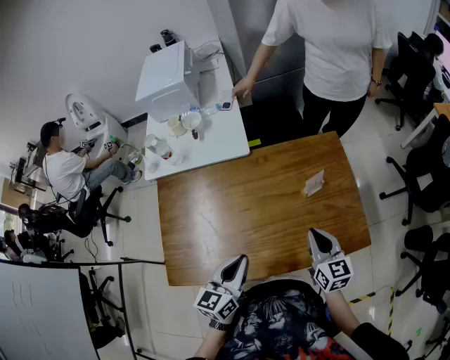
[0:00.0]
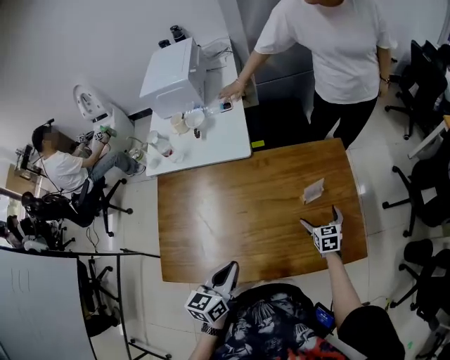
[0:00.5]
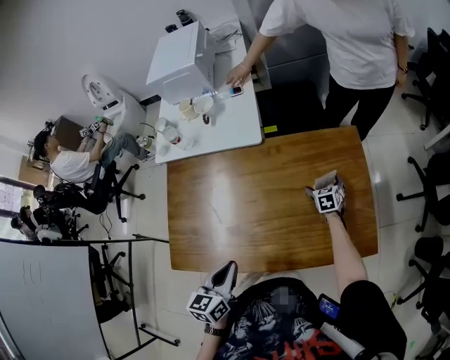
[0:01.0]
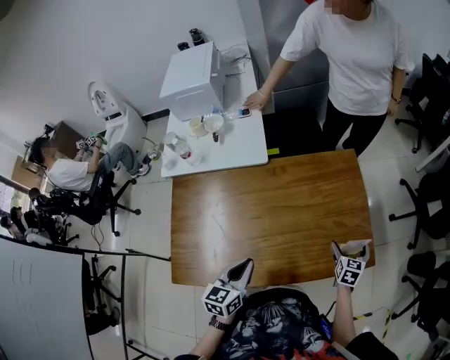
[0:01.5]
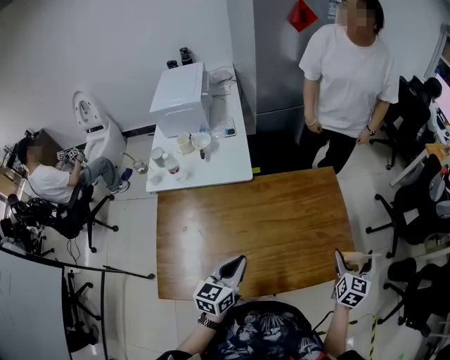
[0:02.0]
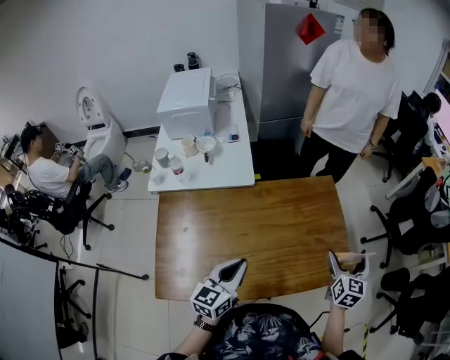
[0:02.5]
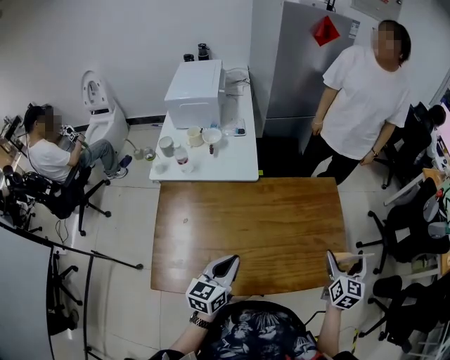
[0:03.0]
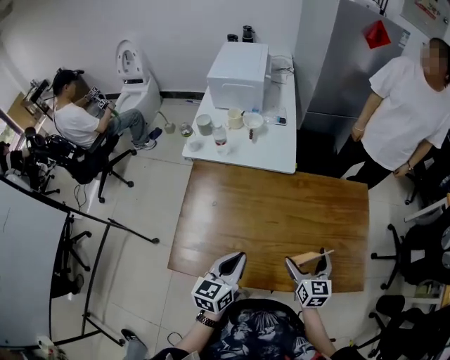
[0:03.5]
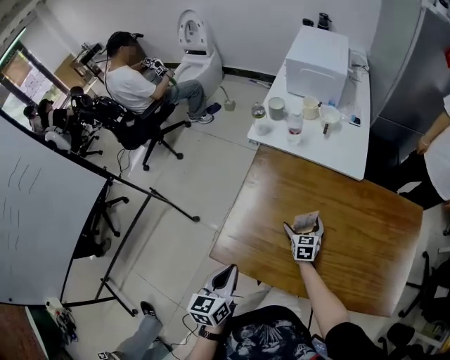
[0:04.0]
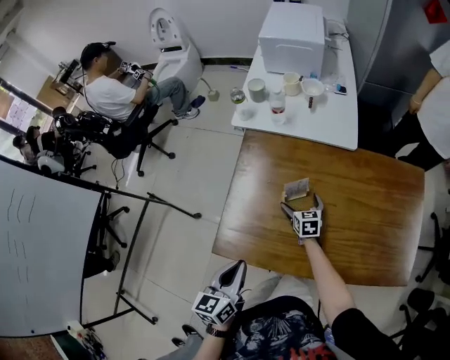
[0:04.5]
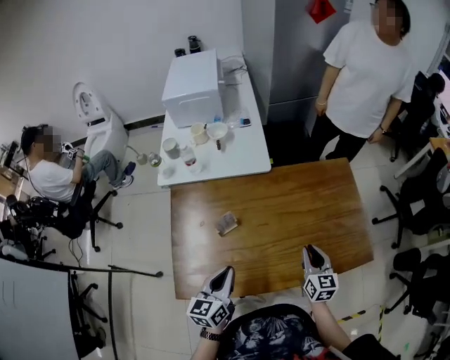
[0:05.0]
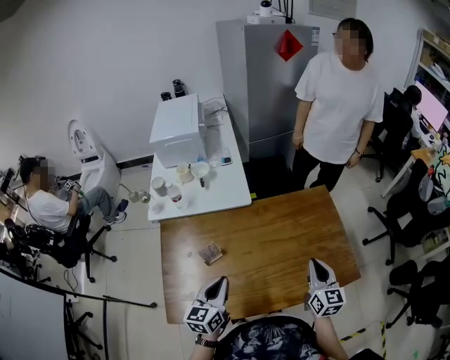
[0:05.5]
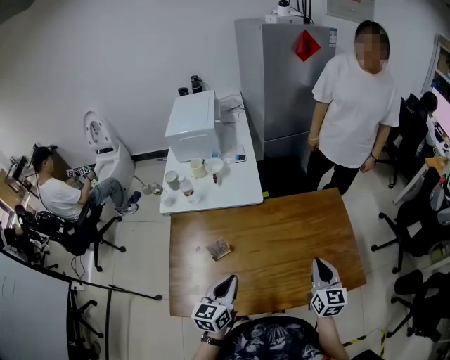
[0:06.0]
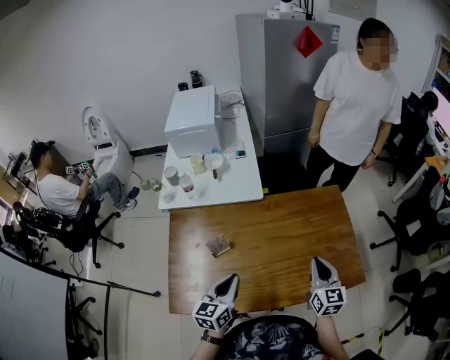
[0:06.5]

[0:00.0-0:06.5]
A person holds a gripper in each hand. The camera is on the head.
0:00.0 to 0:02.0: The right gripper goes about 15 cm to the right, travels downward and back again, roughly 25 cm each way, turns by approximately 40 degrees, and opens its fingers.
0:02.0 to 0:04.5: The right gripper changes place by roughly 60 cm, and changes its angle by about 50 degrees. Meanwhile the left gripper changes place by some 30 cm, and changes its angle by approximately 30 degrees.
0:04.5 to 0:06.5: The right gripper changes place by some 50 cm, turns by some 40 degrees, and closes its fingers. Meanwhile the left gripper shifts by about 25 cm, and swivels roughly 20 degrees.

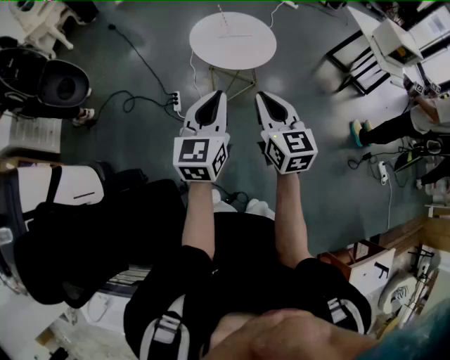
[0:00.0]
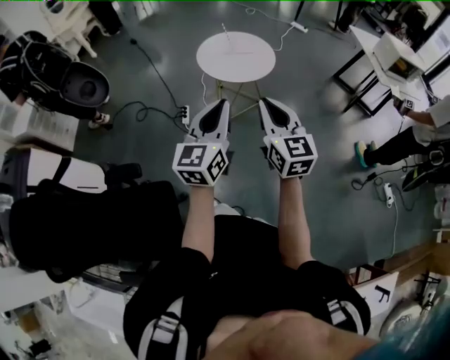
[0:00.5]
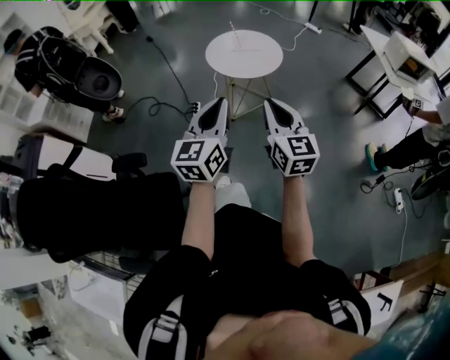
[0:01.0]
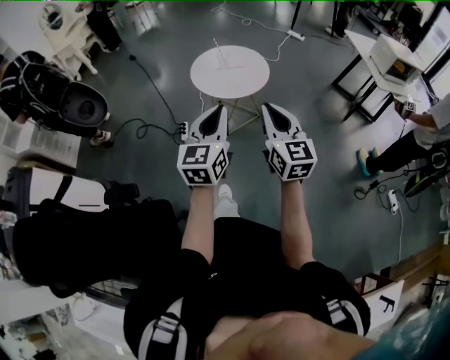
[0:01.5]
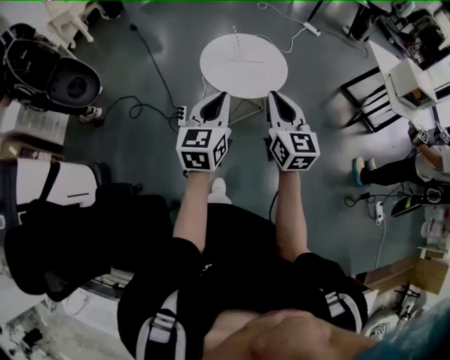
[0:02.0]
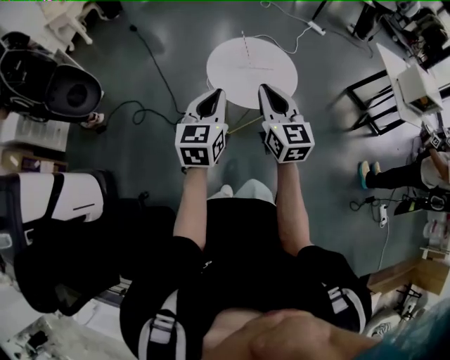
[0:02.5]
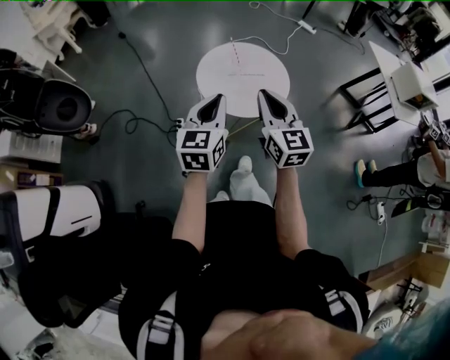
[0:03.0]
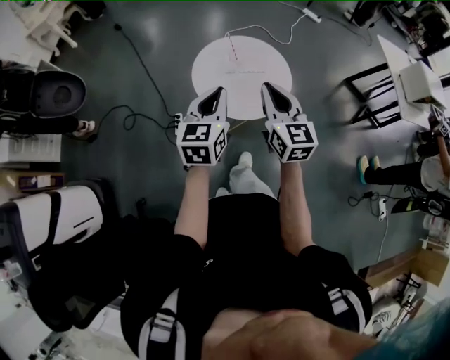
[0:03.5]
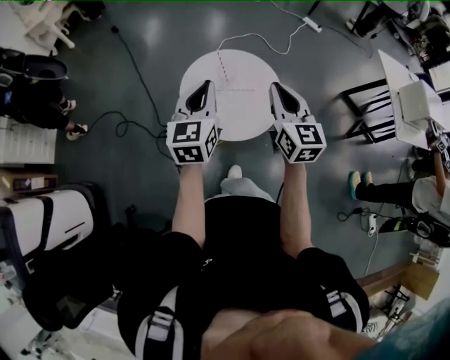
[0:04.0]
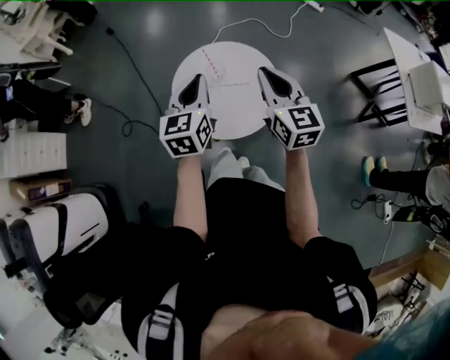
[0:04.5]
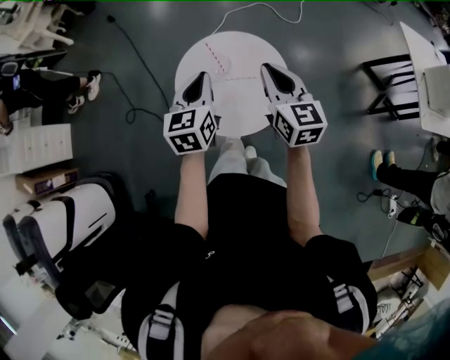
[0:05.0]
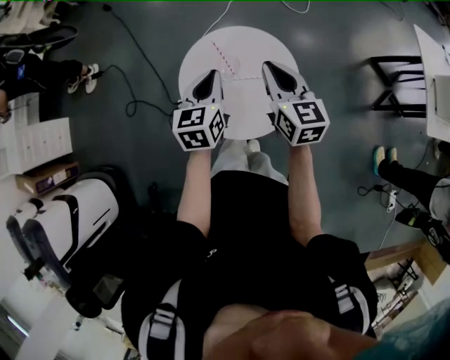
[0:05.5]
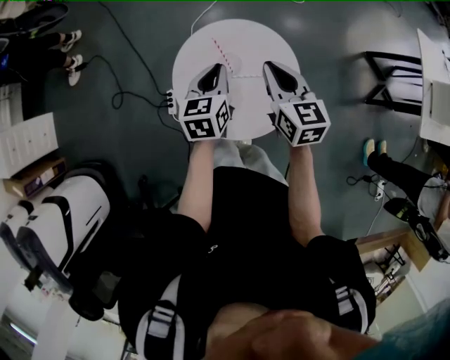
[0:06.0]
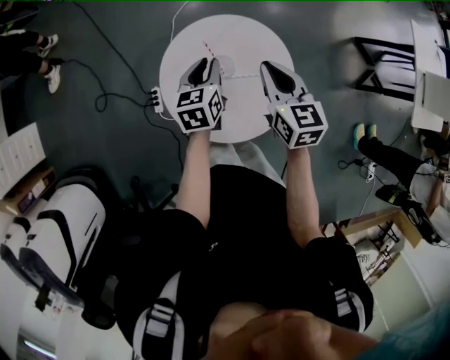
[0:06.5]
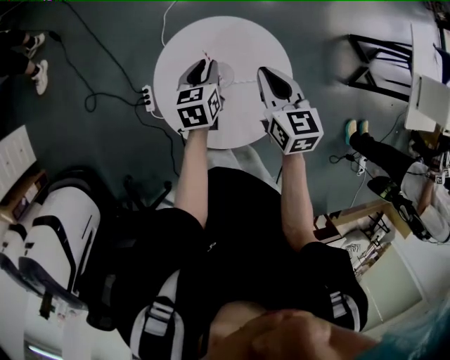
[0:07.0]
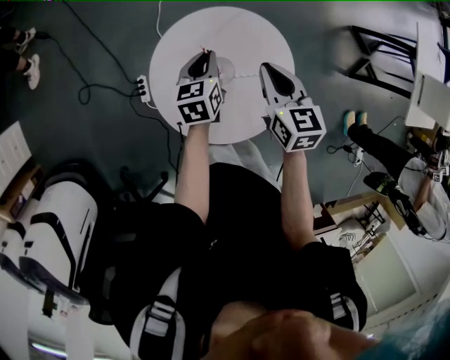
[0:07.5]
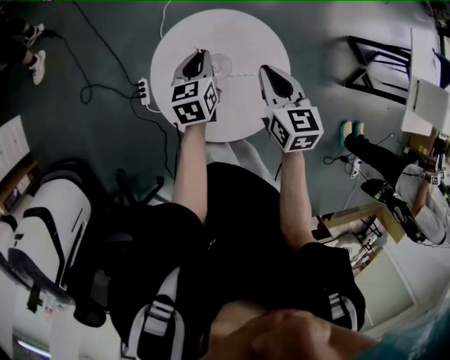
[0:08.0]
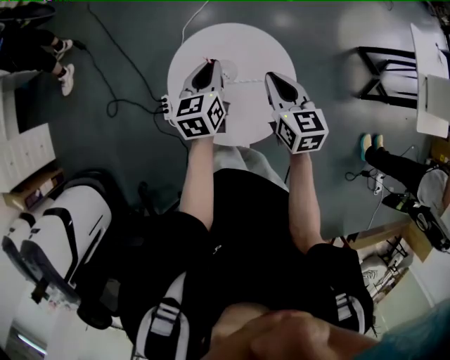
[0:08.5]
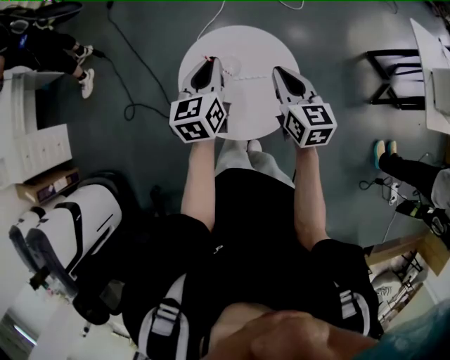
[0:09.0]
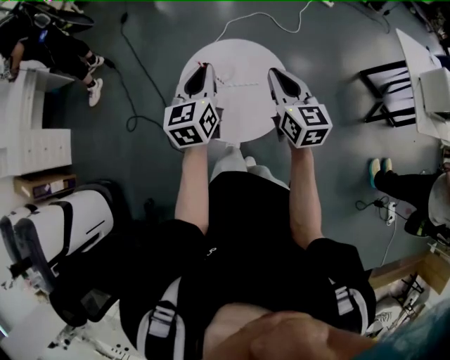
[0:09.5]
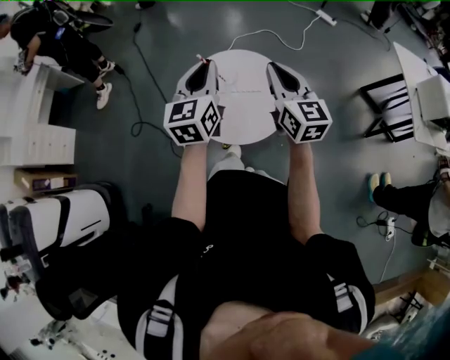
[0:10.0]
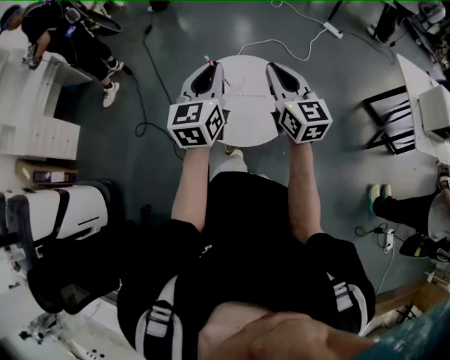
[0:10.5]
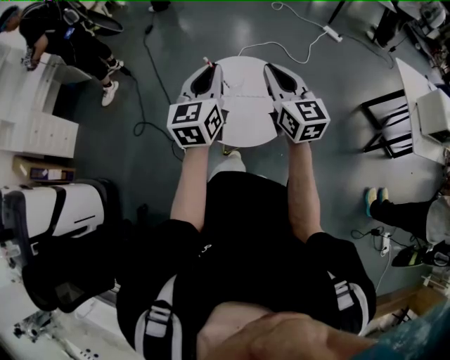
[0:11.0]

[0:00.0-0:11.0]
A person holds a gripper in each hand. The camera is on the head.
0:00.0 to 0:02.0: Both grippers travel together forward and to the right, roughly 15 cm.
0:02.0 to 0:03.5: The grippers both shift forward by about 25 cm.
0:03.5 to 0:05.5: The right gripper heads forward and to the right, covering approximately 30 cm. The left gripper goes approximately 25 cm forward.
0:05.5 to 0:07.5: Both grippers move downward and forward, approximately 20 cm. The left gripper changes its angle by about 20 degrees, while the right gripper swivels roughly 20 degrees.
0:07.5 to 0:09.0: The left gripper heads upward and backward, covering about 25 cm, and rotates approximately 20 degrees. Meanwhile the right gripper shifts approximately 20 cm backward and upward.
0:09.0 to 0:11.0: The right gripper goes about 15 cm upward and backward, and rotates some 20 degrees, while the left gripper shifts approximately 20 cm backward and upward.

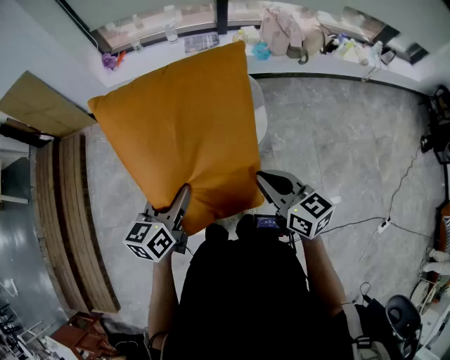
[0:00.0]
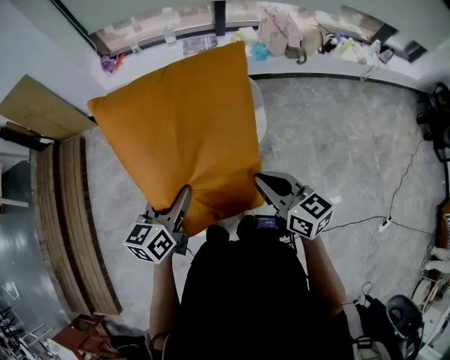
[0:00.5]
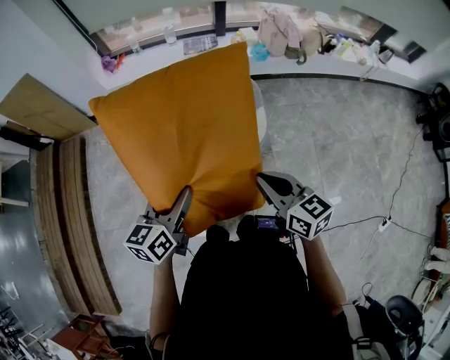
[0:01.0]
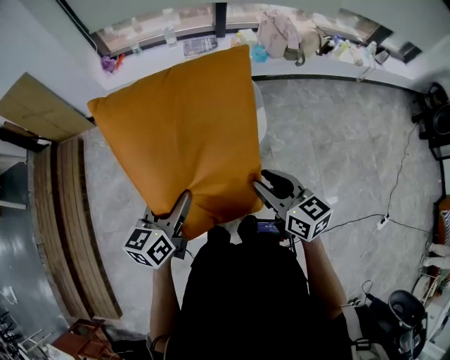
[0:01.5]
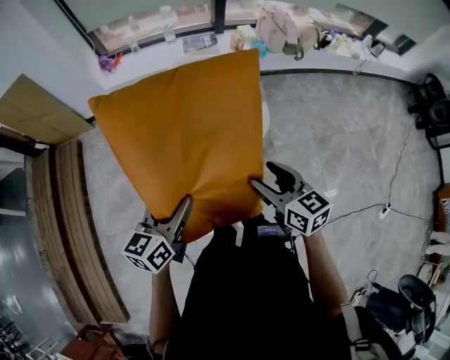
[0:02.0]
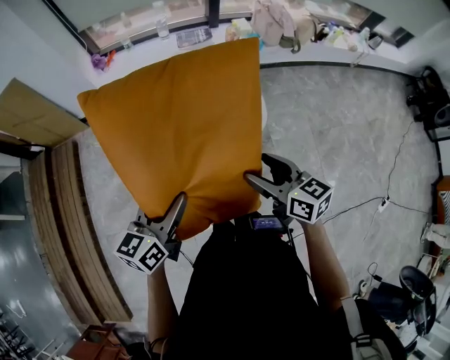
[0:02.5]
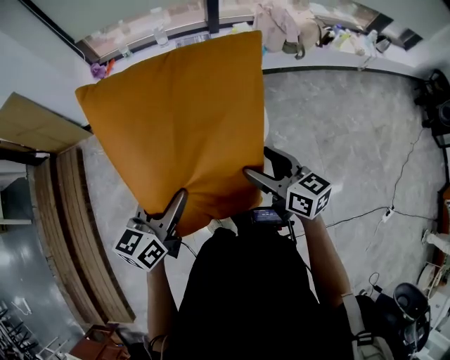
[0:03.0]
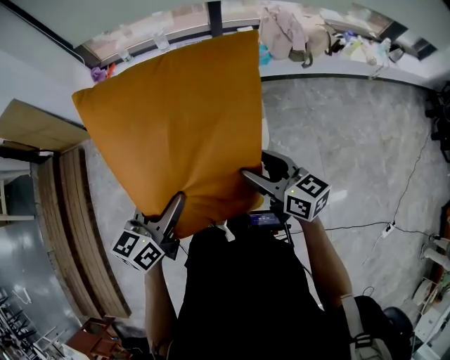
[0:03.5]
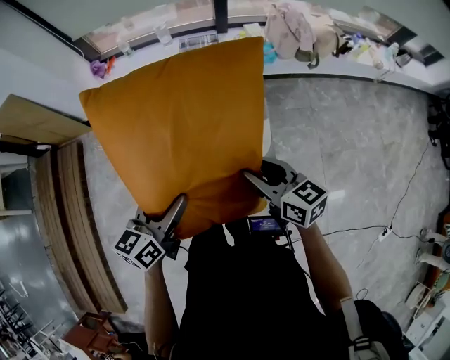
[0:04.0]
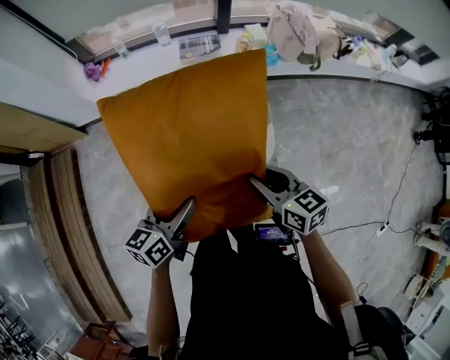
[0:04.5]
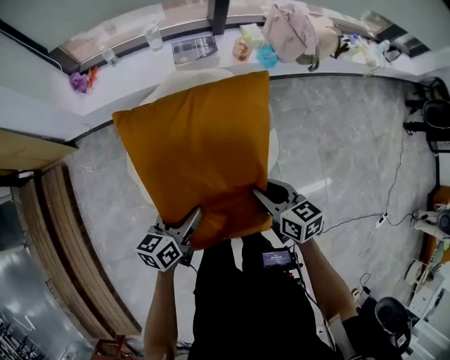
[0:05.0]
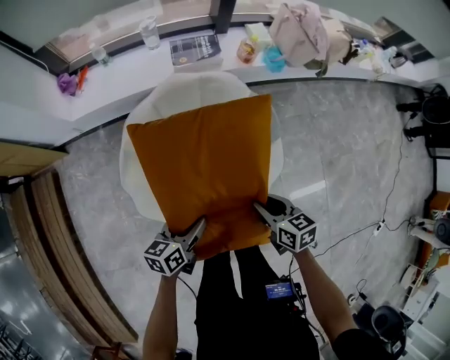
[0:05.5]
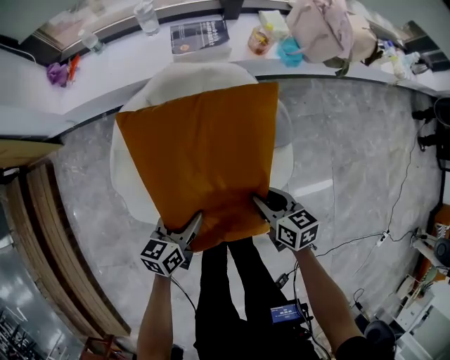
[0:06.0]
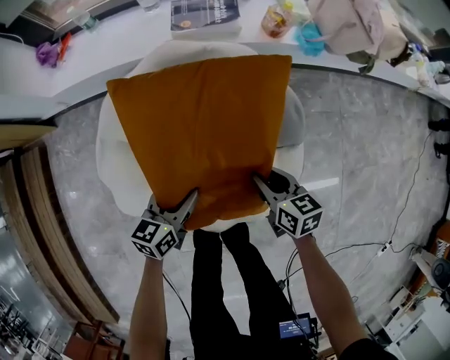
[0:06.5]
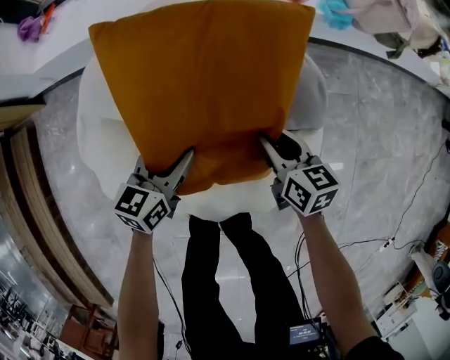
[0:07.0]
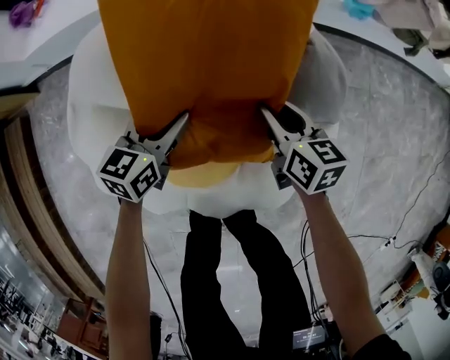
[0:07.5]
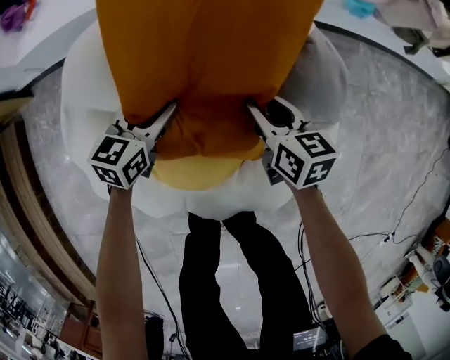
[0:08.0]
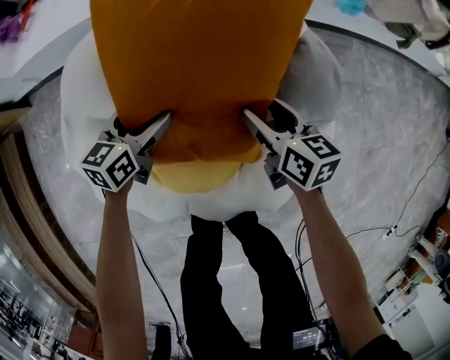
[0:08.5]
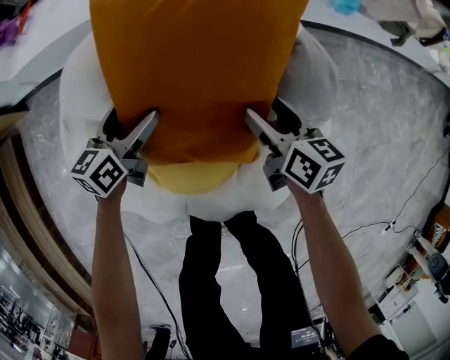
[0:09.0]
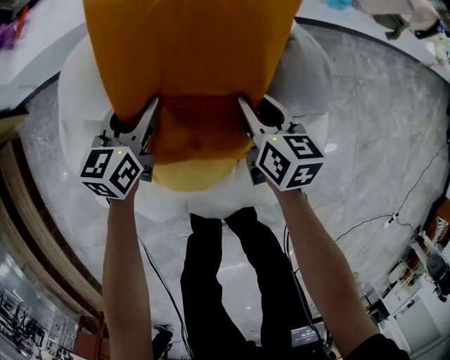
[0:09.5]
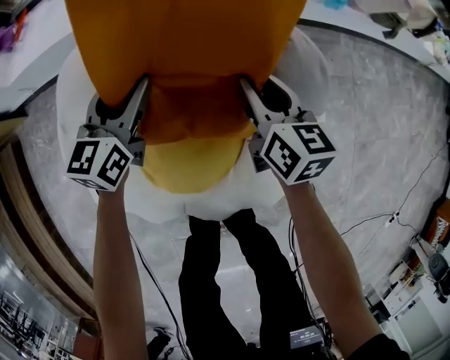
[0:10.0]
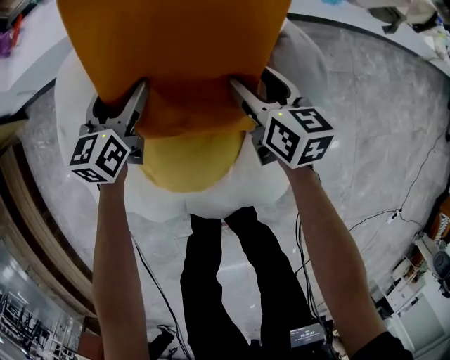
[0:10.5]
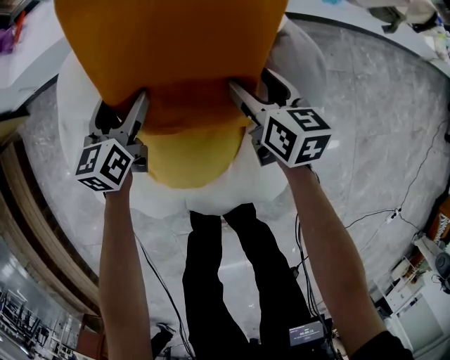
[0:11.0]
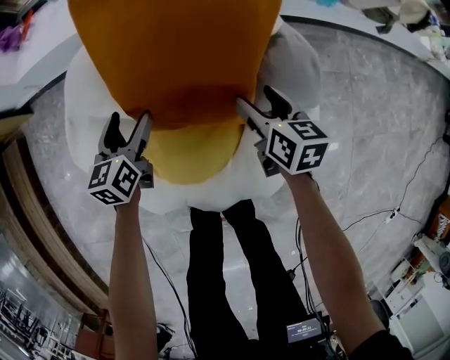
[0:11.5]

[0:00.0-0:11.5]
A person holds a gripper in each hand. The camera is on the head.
0:00.0 to 0:02.0: Both grippers move to the left, about 10 cm. The right gripper opens its fingers.
0:02.0 to 0:04.0: The two grippers go approximately 25 cm forward and to the right.
0:04.0 to 0:06.0: Both grippers move downward and forward, approximately 35 cm. The right gripper swivels some 20 degrees.
0:06.0 to 0:07.5: Both grippers move downward and forward, roughly 25 cm.
0:07.5 to 0:09.5: The right gripper opens, then closes once more. Meanwhile the left gripper ends up approximately 5 cm from where it was, and opens, then closes again.
0:09.5 to 0:11.5: The left gripper moves some 5 cm, and opens its fingers, while the right gripper opens.
